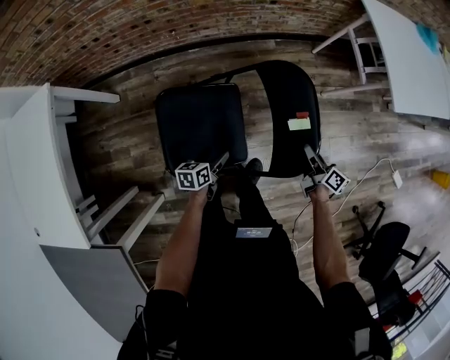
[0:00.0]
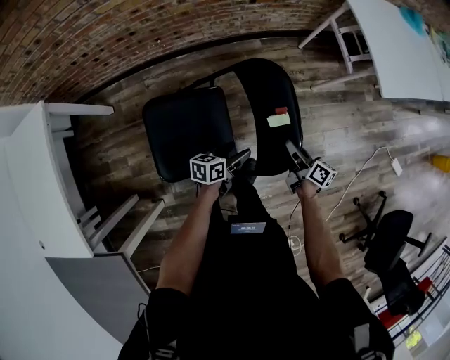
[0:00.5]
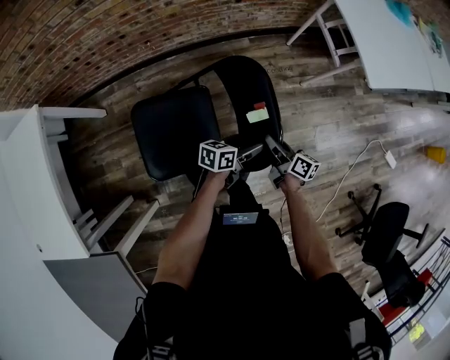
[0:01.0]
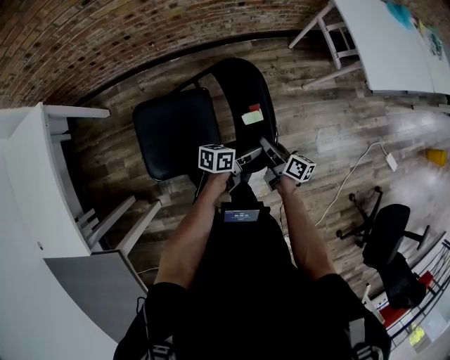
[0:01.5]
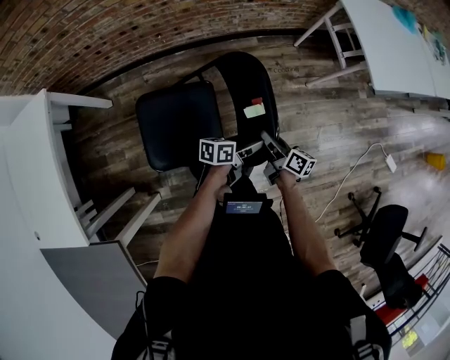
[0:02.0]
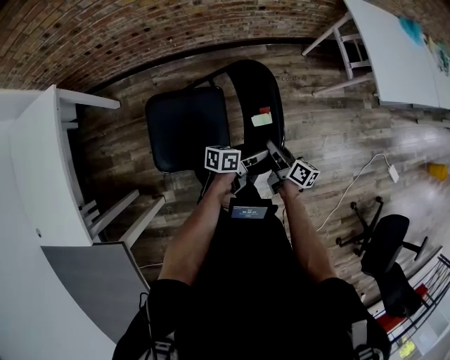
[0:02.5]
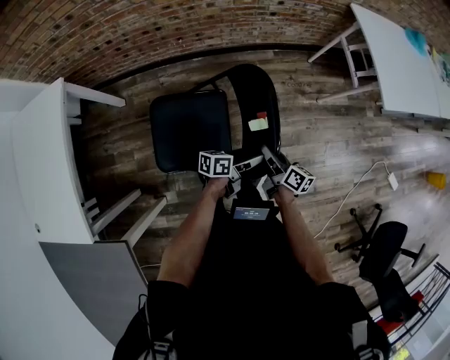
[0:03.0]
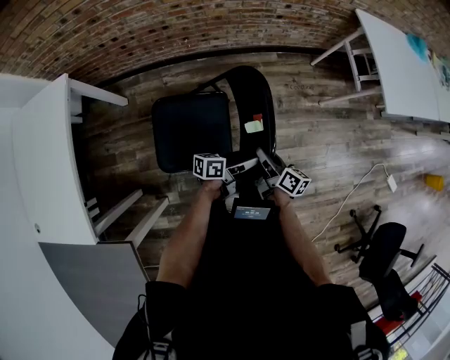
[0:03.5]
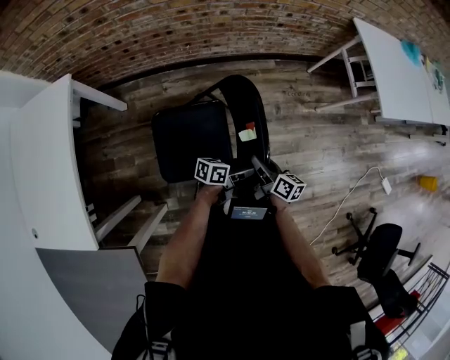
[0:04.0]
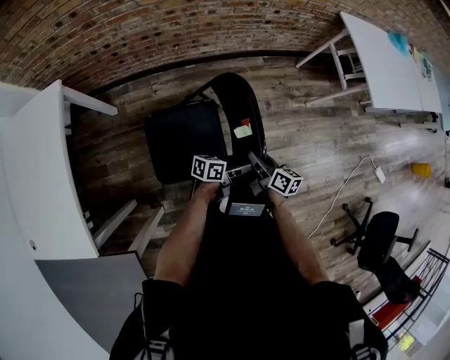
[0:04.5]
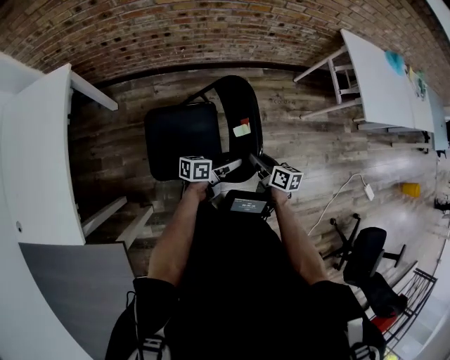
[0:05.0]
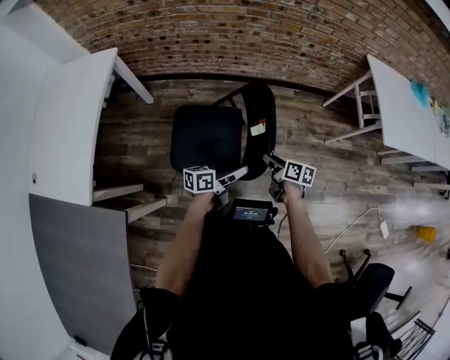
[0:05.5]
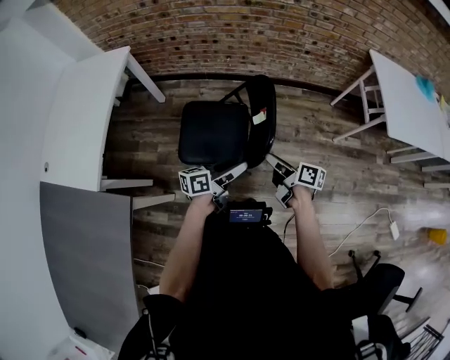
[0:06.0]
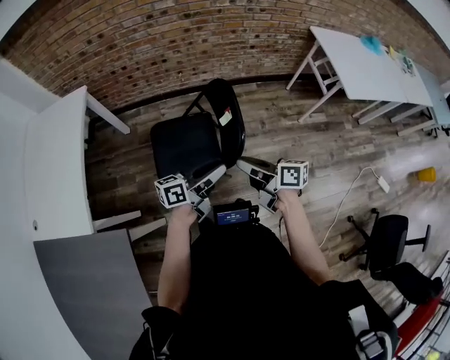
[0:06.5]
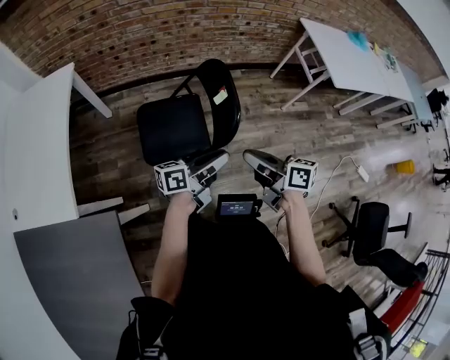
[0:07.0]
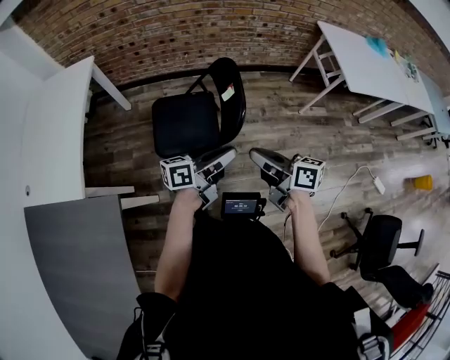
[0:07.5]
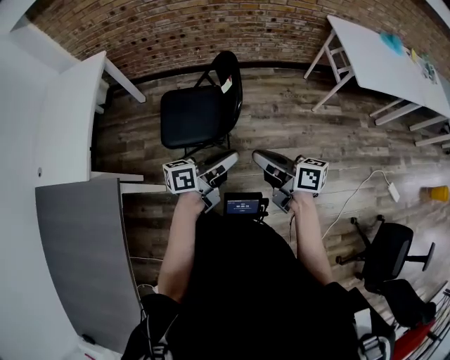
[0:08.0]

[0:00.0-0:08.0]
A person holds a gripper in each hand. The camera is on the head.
0:00.0 to 0:02.0: The right gripper ends up about 10 cm from where it was.
0:02.0 to 0:04.0: The right gripper moves approximately 15 cm.
0:04.0 to 0:06.0: The right gripper heads upward, covering some 10 cm, and changes its angle by some 20 degrees.
0:06.0 to 0:08.0: The right gripper moves approximately 25 cm, and closes its fingers.

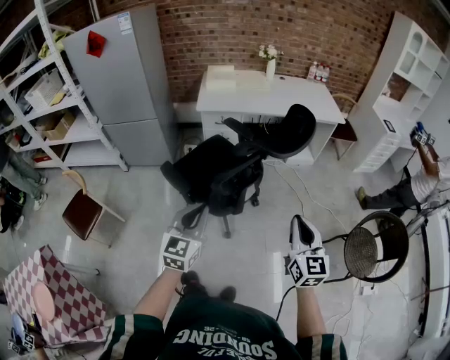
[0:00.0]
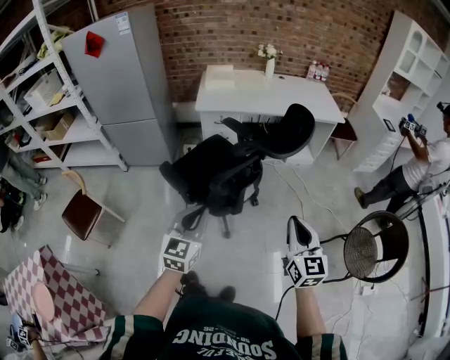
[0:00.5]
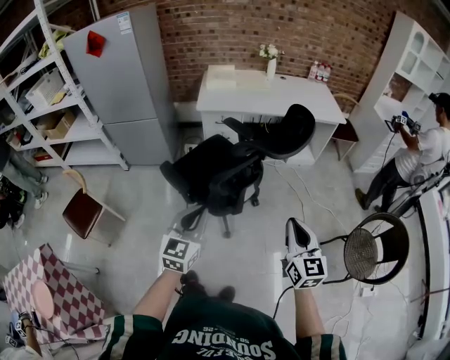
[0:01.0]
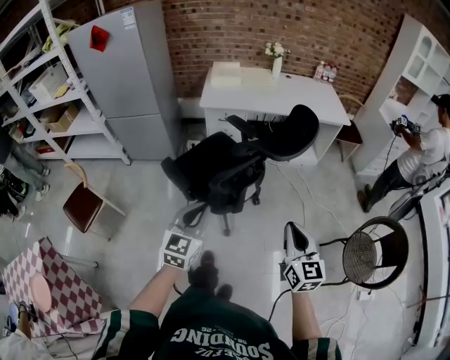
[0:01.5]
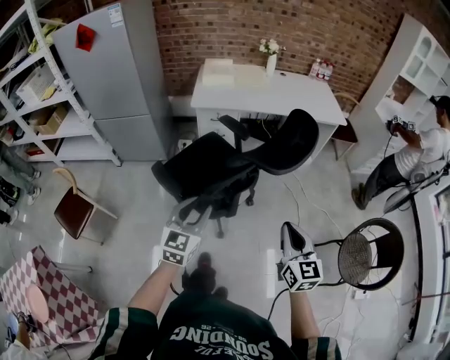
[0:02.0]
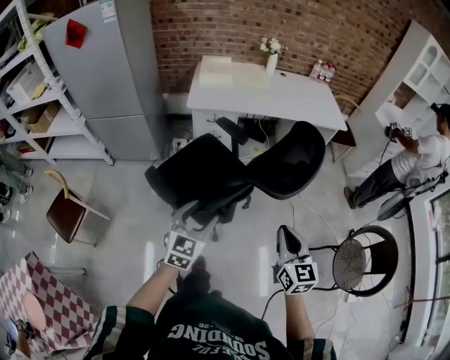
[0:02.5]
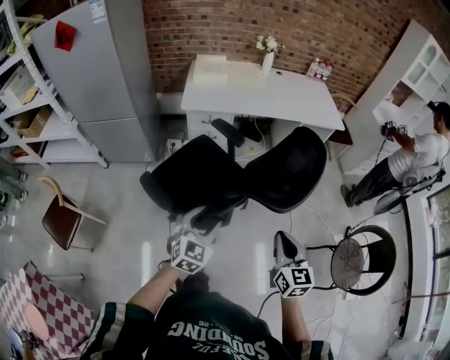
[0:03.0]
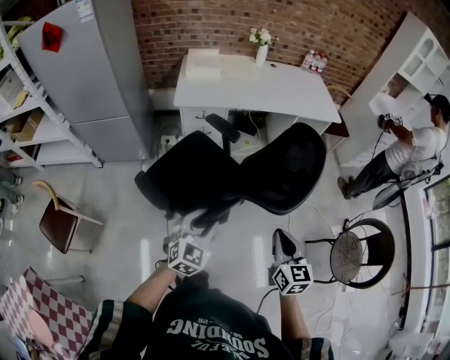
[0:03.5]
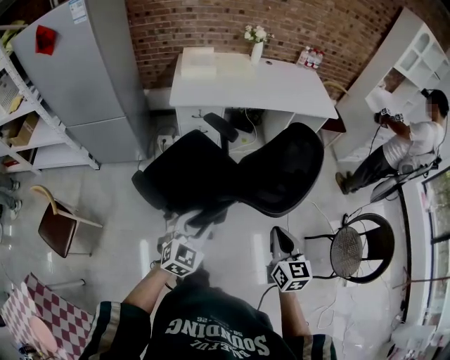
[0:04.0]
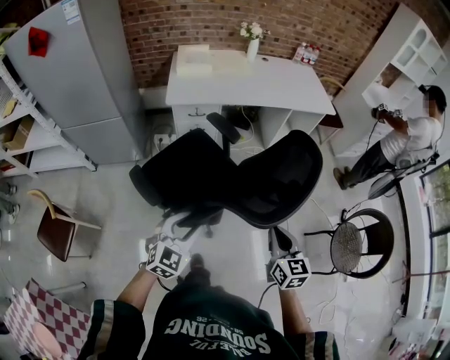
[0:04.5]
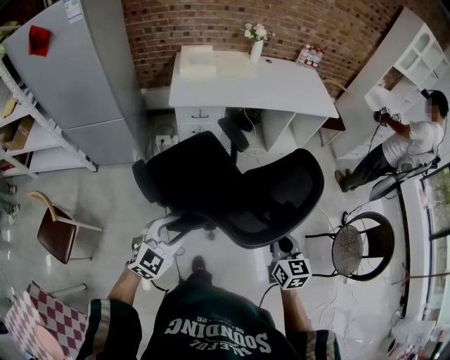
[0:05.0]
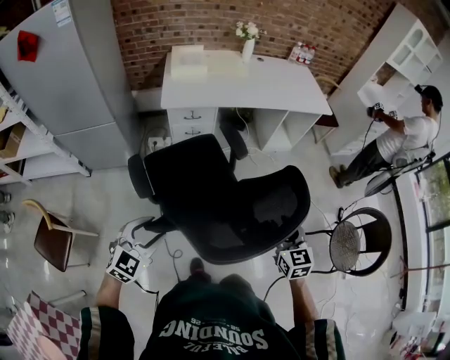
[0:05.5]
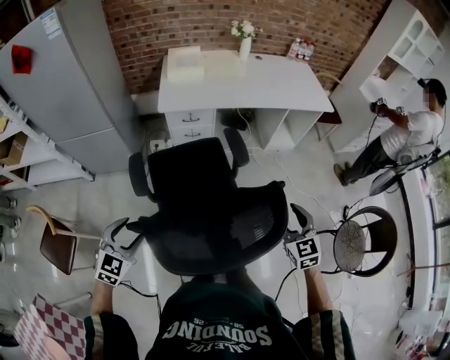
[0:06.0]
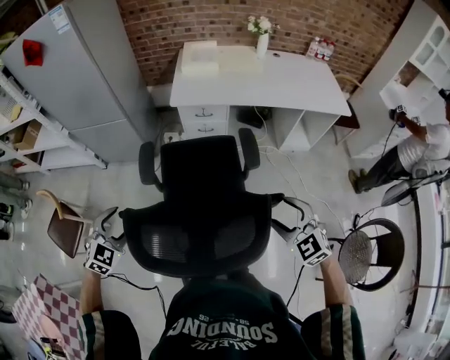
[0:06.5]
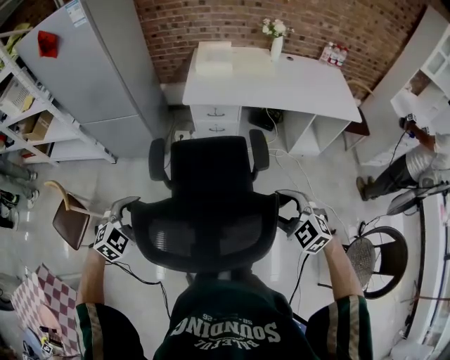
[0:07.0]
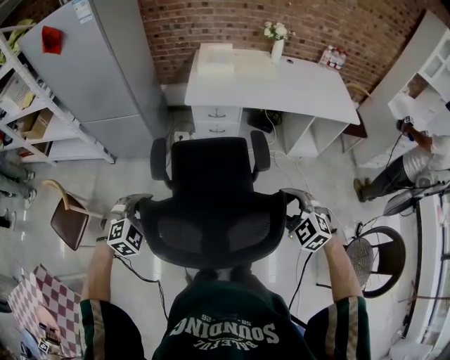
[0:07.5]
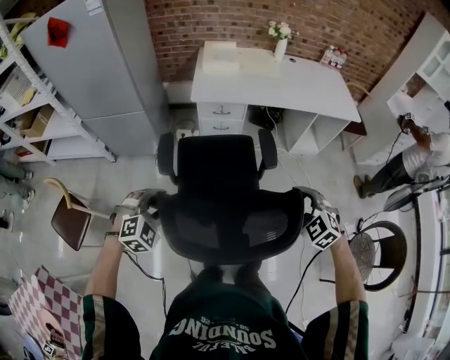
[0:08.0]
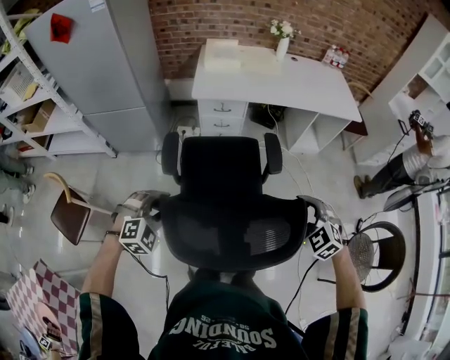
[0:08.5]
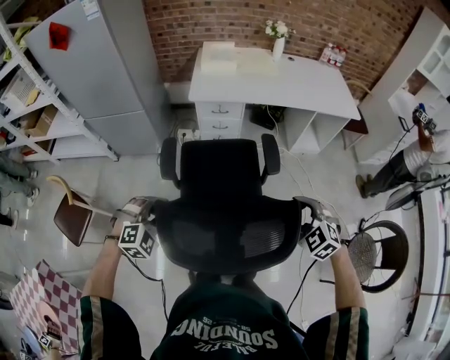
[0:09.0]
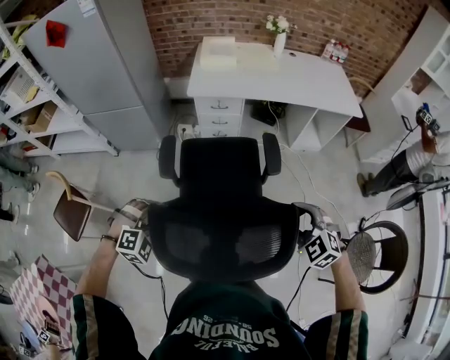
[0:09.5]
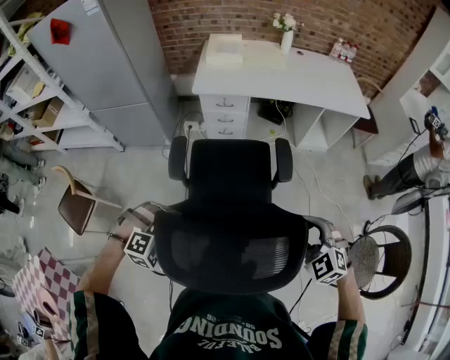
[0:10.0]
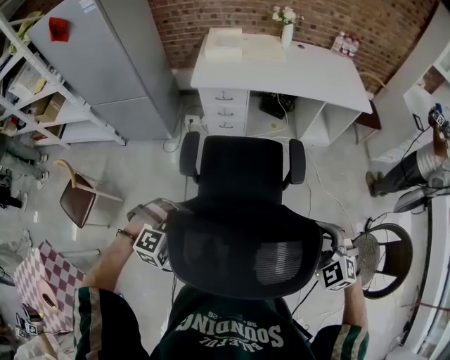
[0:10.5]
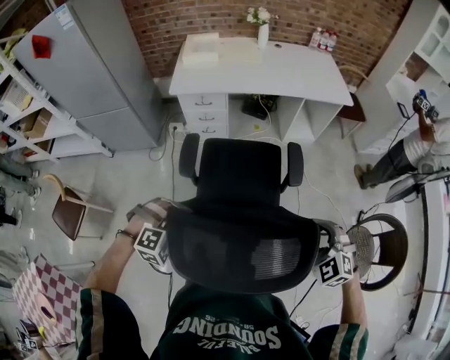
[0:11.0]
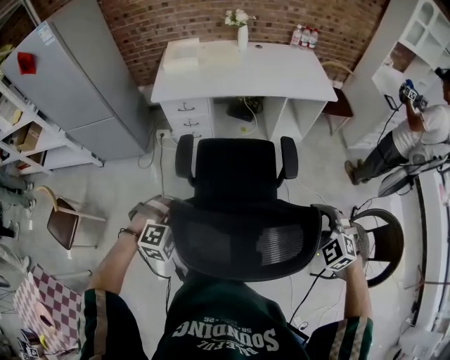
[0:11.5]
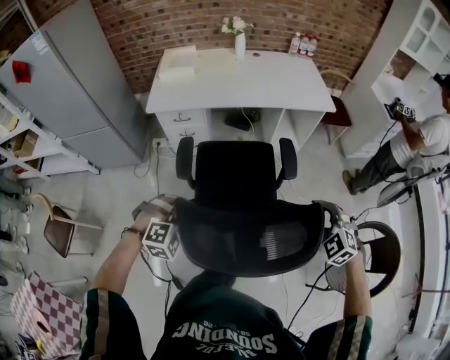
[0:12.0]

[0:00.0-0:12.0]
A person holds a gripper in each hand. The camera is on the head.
0:00.0 to 0:02.0: The two grippers go roughly 5 cm forward.
0:02.0 to 0:04.0: Both grippers travel together forward and downward, some 10 cm. The left gripper swivels about 20 degrees.
0:04.0 to 0:06.0: The left gripper moves to the left, about 20 cm. Meanwhile the right gripper is displaced forward by roughly 10 cm, swivels roughly 30 degrees, and opens up.
0:06.0 to 0:08.0: The right gripper goes approximately 5 cm to the left, and swivels some 40 degrees. The left gripper changes its angle by roughly 30 degrees.
0:08.0 to 0:10.0: The left gripper shifts roughly 15 cm to the right and backward, rotates about 20 degrees, and closes its fingers. Meanwhile the right gripper travels backward and to the right by approximately 10 cm.
0:10.0 to 0:12.0: Both grippers move to the right and forward, about 25 cm.

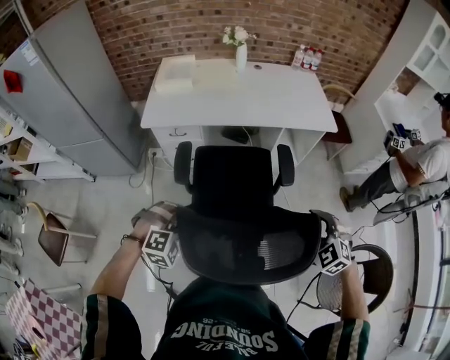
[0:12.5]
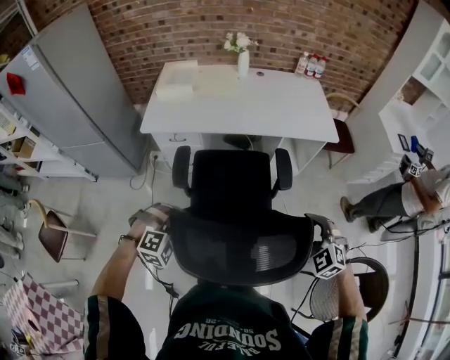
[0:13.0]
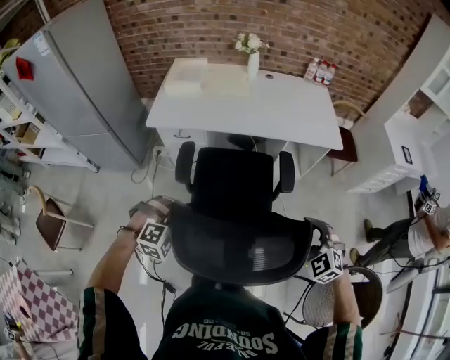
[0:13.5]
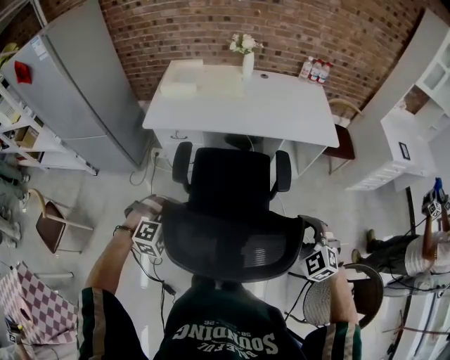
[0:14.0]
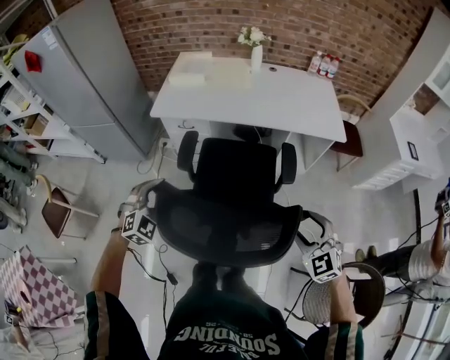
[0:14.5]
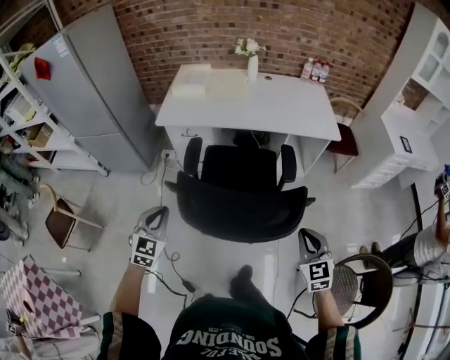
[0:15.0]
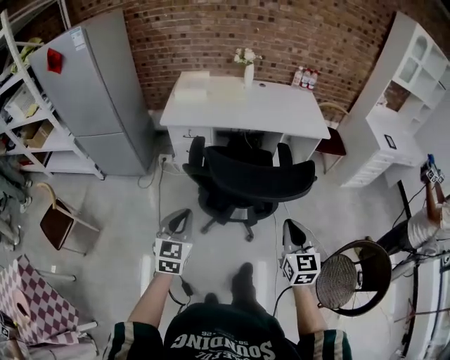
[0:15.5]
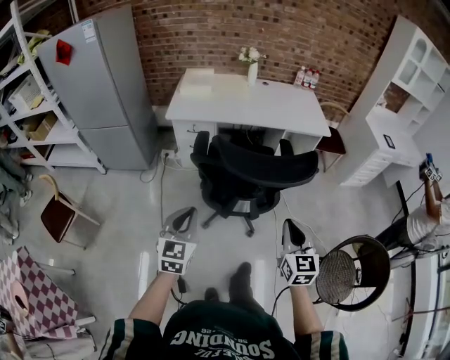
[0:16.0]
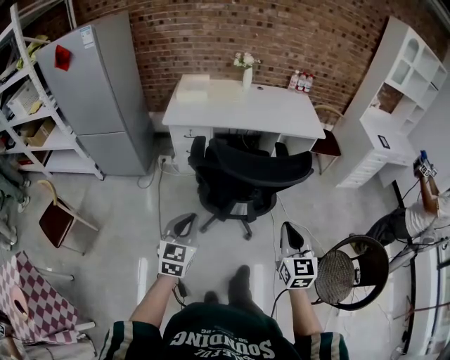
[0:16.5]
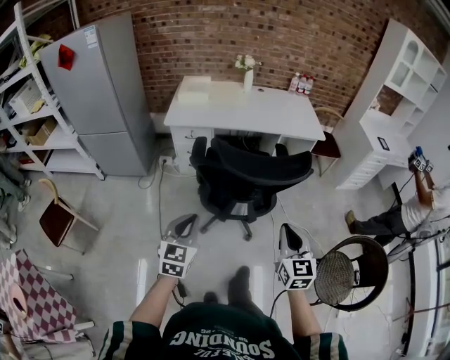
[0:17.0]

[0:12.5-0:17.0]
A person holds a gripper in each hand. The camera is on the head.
0:12.5 to 0:14.5: The left gripper shifts by roughly 5 cm, changes its angle by approximately 40 degrees, and opens.
0:14.5 to 0:17.0: The left gripper goes approximately 25 cm backward, twists about 40 degrees counterclockwise, seen from behind, and closes up, while the right gripper travels backward and to the left by some 30 cm, turns by about 40 degrees, and closes.

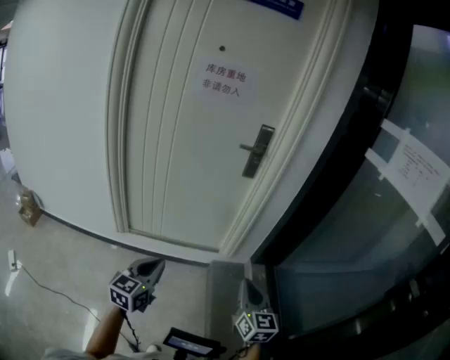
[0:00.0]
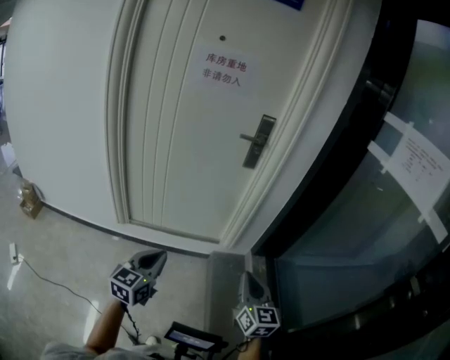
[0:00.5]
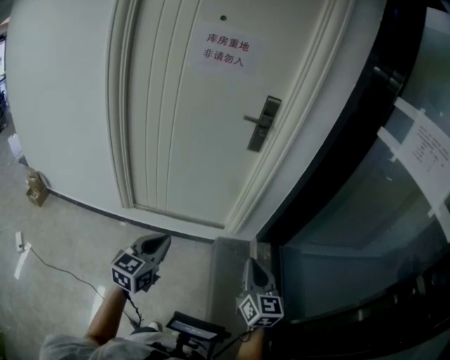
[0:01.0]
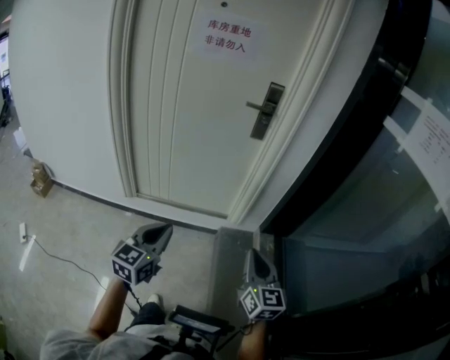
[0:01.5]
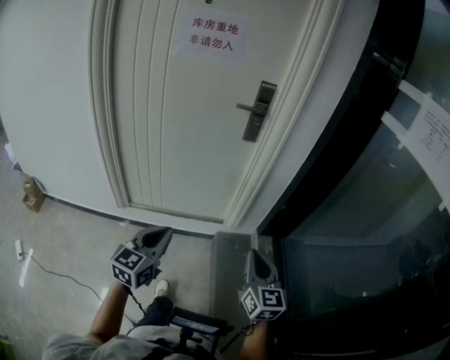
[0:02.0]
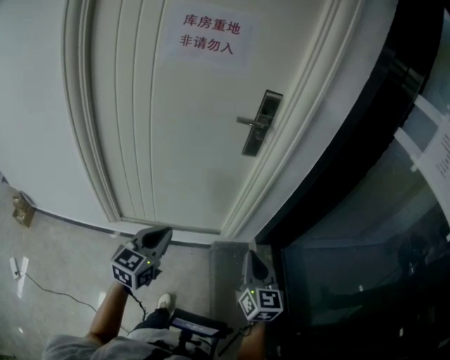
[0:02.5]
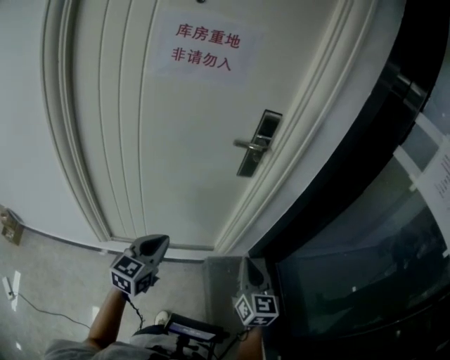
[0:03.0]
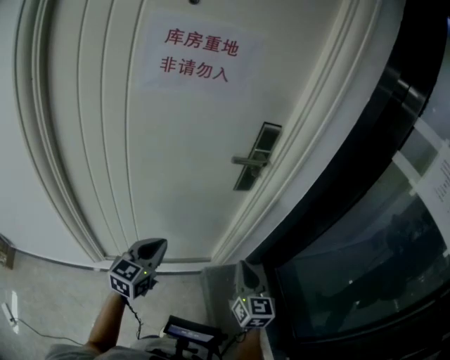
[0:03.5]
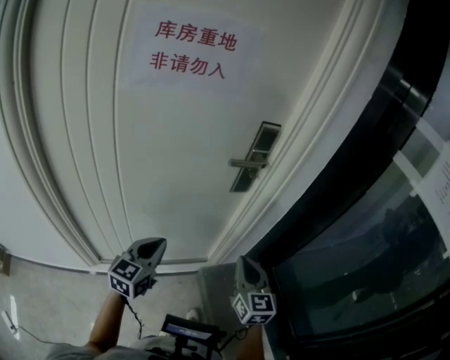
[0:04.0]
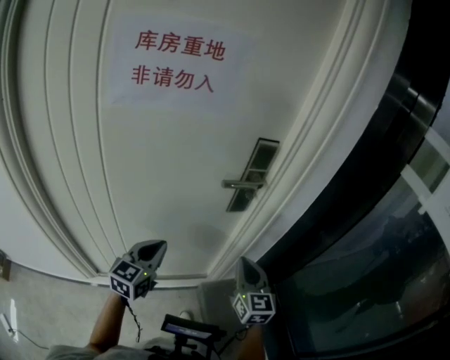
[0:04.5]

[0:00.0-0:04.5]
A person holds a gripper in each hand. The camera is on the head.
0:00.0 to 0:02.0: The right gripper goes approximately 5 cm forward. The left gripper shifts about 10 cm forward and to the right.
0:02.0 to 0:04.5: The two grippers go some 40 cm forward.
